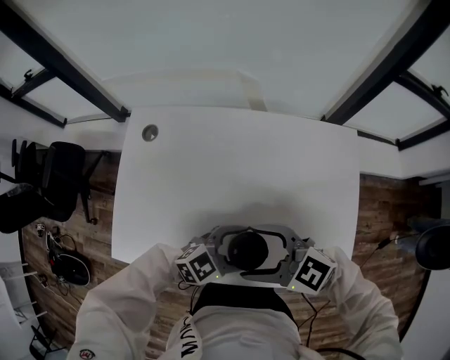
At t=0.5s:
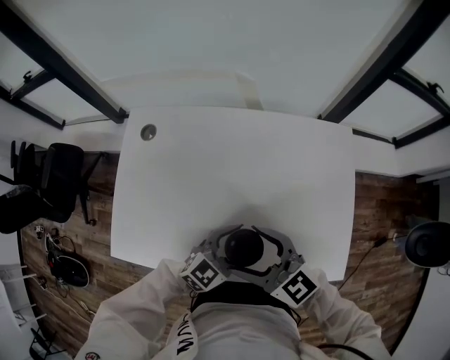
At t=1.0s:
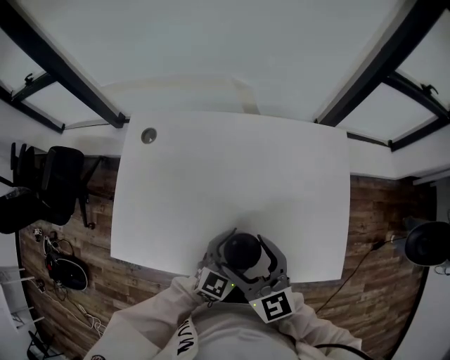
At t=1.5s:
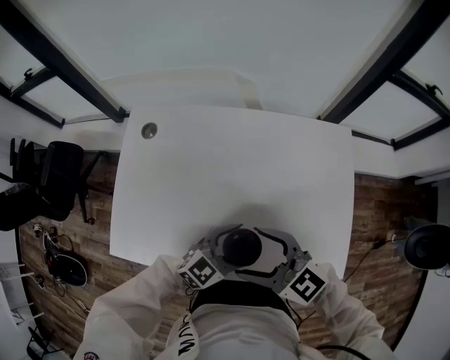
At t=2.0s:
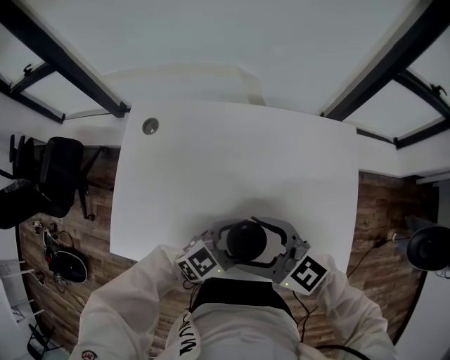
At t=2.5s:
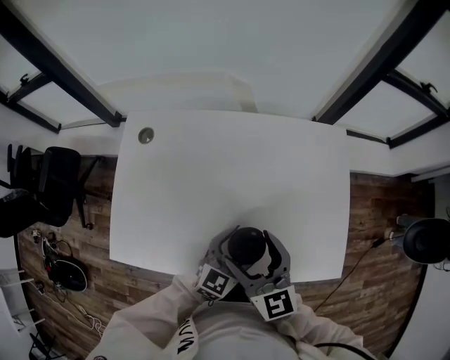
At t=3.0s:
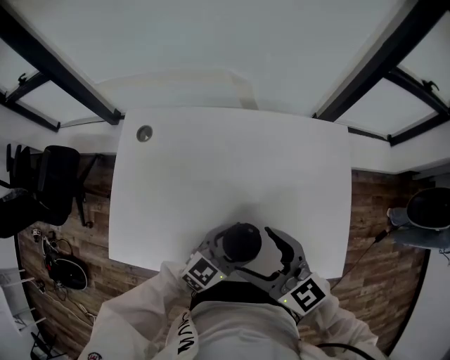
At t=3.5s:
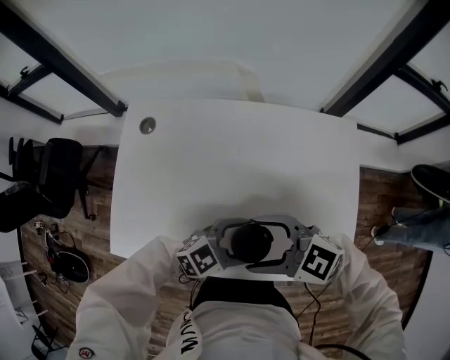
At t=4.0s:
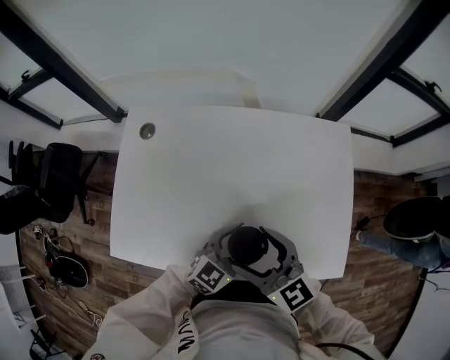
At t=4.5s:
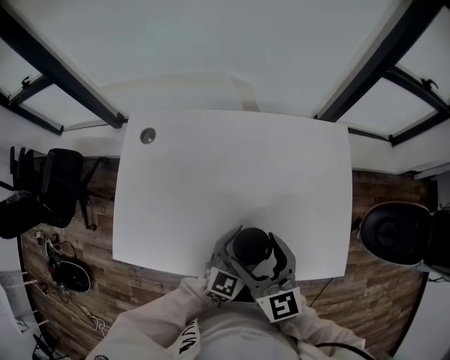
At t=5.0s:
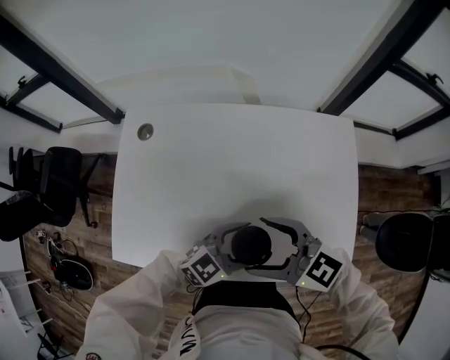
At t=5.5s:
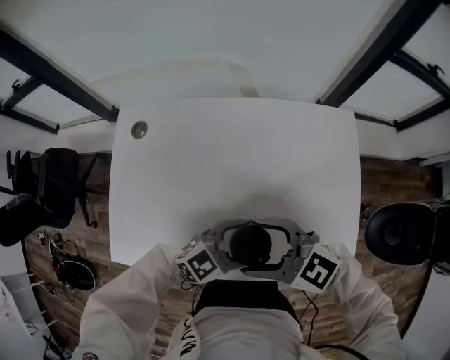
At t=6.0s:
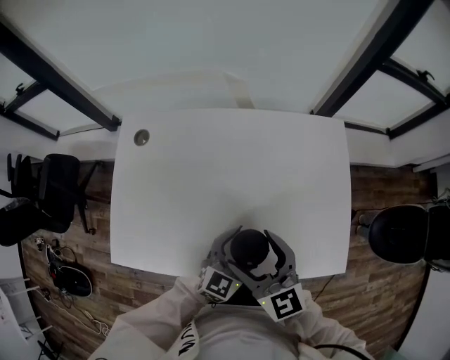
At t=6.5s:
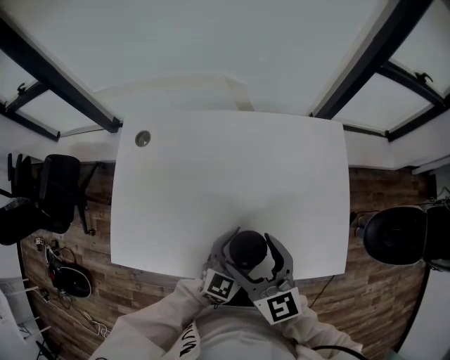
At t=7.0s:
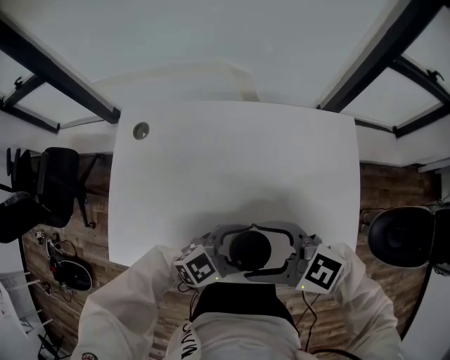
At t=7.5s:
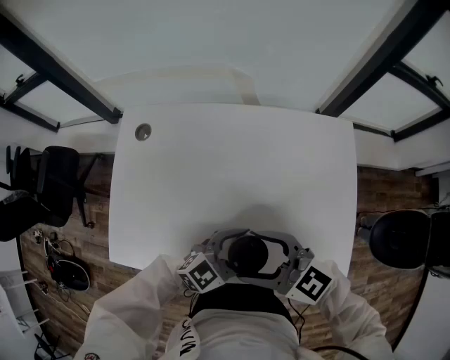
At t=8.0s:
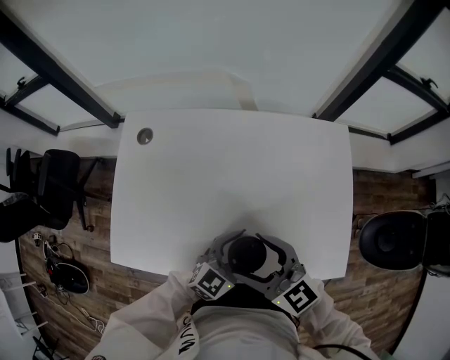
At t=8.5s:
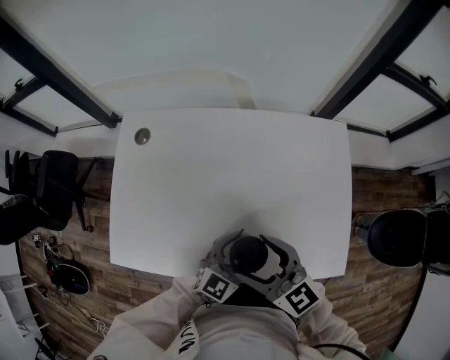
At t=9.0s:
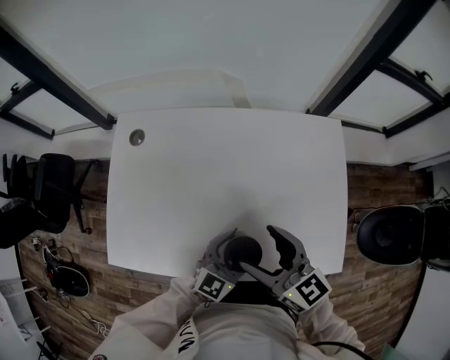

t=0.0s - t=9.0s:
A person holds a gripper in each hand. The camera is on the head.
t=2.0s - t=4.5s: The right gripper changes its angle by about 40 degrees. The left gripper rotates about 30 degrees.
t=4.5s - t=7.0s: The right gripper swivels some 50 degrees, while the left gripper changes its angle by roughly 40 degrees.
t=7.0s - t=9.0s: The left gripper changes its angle by about 30 degrees; the right gripper swivels approximately 40 degrees.

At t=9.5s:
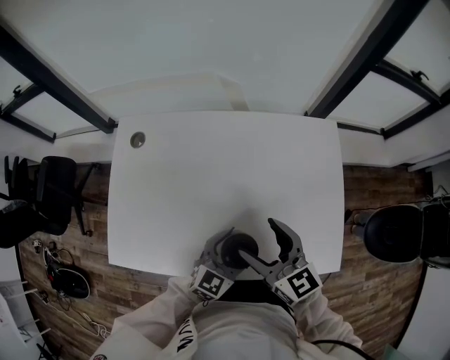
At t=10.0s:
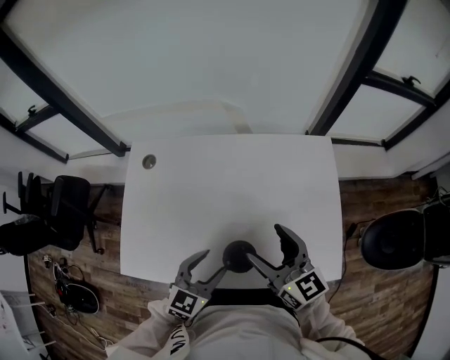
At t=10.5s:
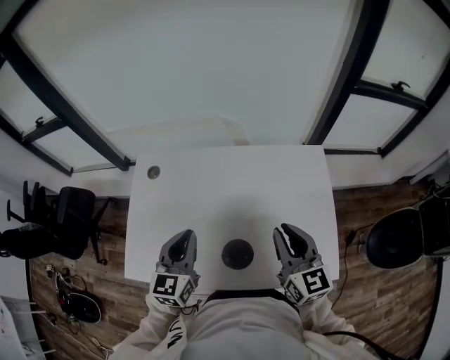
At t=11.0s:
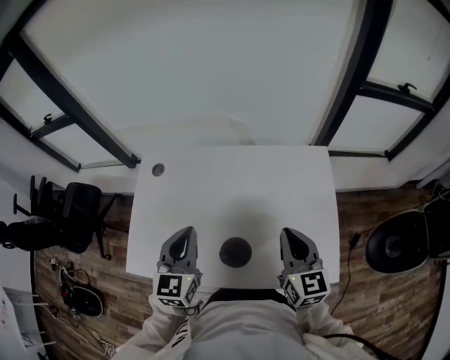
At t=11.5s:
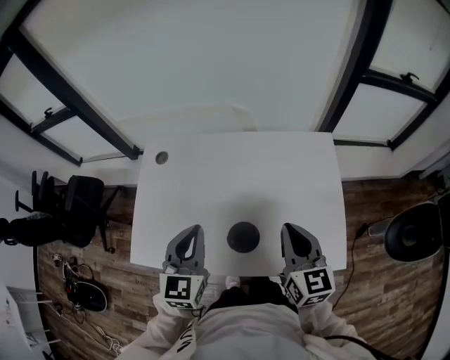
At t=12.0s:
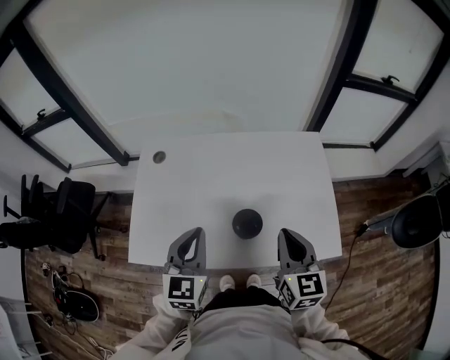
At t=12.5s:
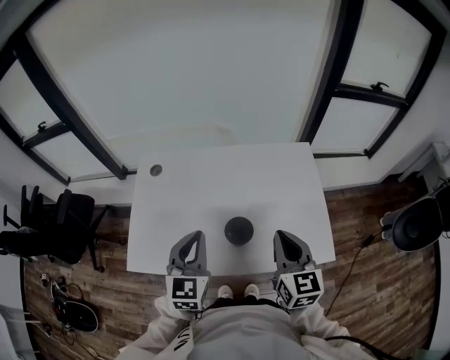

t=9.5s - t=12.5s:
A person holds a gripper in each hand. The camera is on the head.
t=9.5s - t=11.0s: The left gripper heads upward and to the left, covering roughly 25 cm, turns by roughly 40 degrees, and closes. Meanwhile the right gripper goes roughly 15 cm to the right and upward, changes its angle by about 20 degrees, and closes.
t=11.0s - t=12.5s: The two grippers go some 10 cm backward.

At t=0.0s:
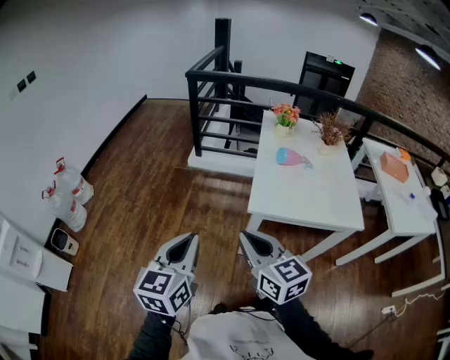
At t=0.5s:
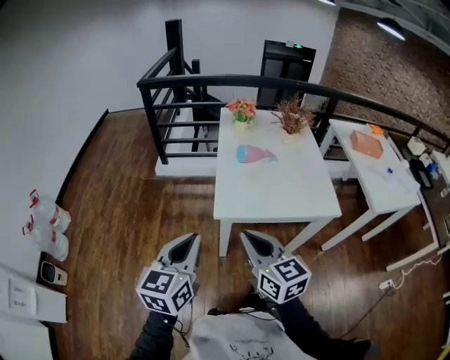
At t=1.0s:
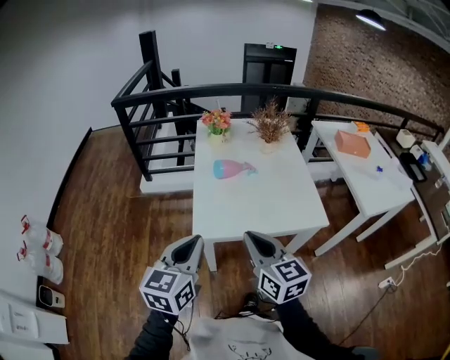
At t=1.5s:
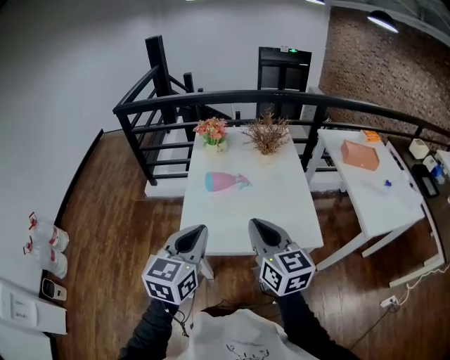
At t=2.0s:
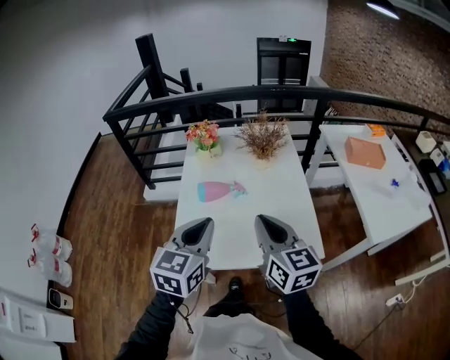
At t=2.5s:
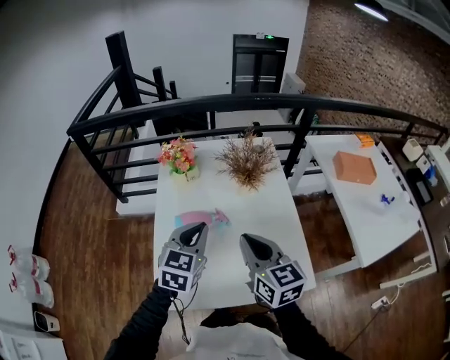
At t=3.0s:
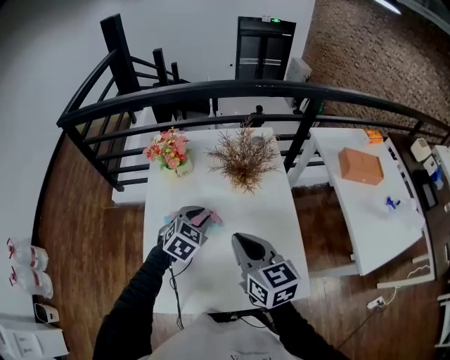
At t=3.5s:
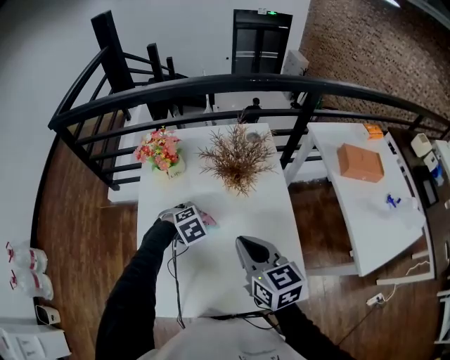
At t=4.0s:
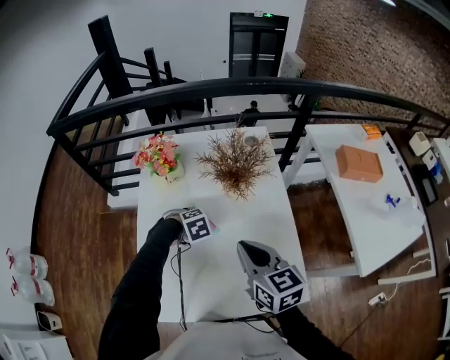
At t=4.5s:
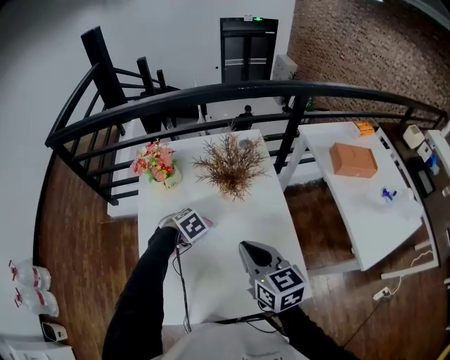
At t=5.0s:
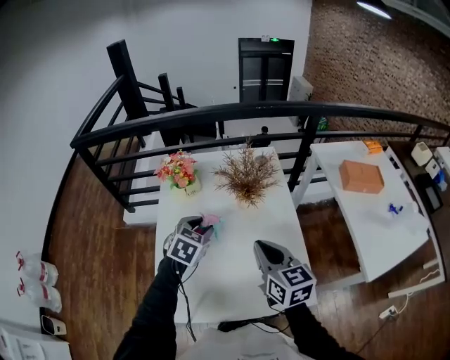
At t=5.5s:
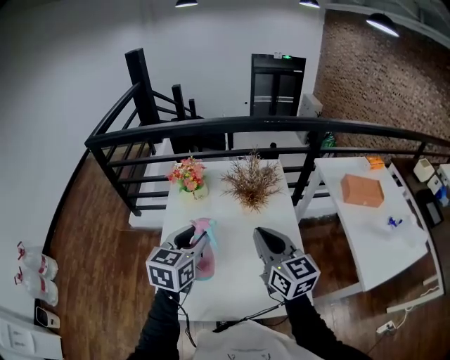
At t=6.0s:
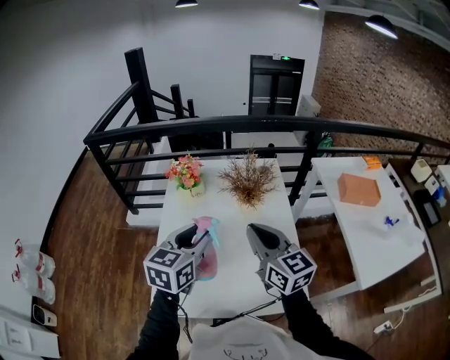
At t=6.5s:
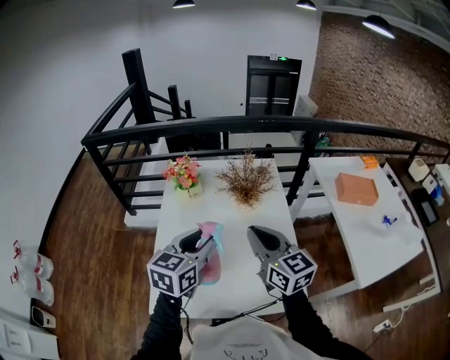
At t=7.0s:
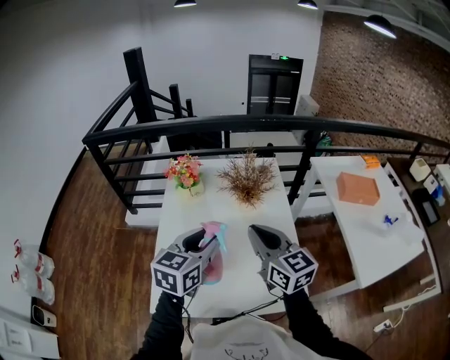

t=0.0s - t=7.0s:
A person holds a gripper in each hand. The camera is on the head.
t=0.0s - t=2.0s: The two grippers travel together, to the right and forward, roughly 60 cm. The right gripper turns by about 20 degrees.
t=2.0s - t=3.5s: The right gripper is displaced forward by roughly 30 cm, while the left gripper is displaced forward and downward by approximately 50 cm, tips its fingers downward by roughly 50 degrees, and opens.
t=3.5s - t=5.0s: The left gripper goes roughly 15 cm upward, and rotates about 40 degrees. Meanwhile the right gripper shifts by about 5 cm.
t=5.0s - t=7.0s: The left gripper shifts about 20 cm backward and upward, and turns by about 30 degrees; the right gripper is displaced upward by about 5 cm.

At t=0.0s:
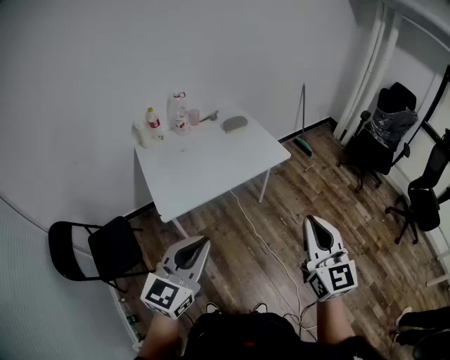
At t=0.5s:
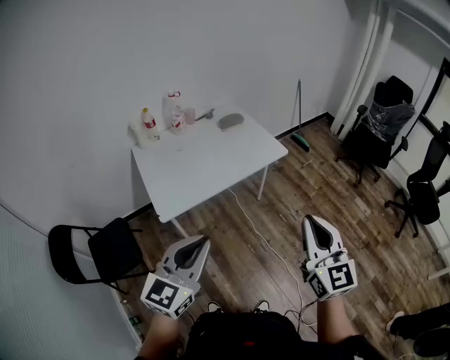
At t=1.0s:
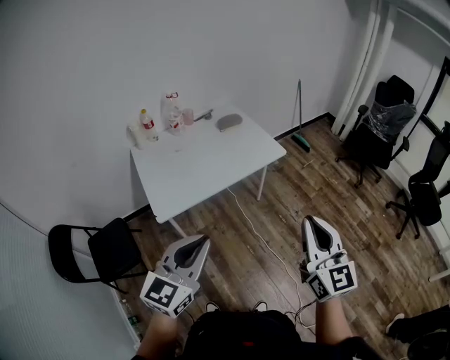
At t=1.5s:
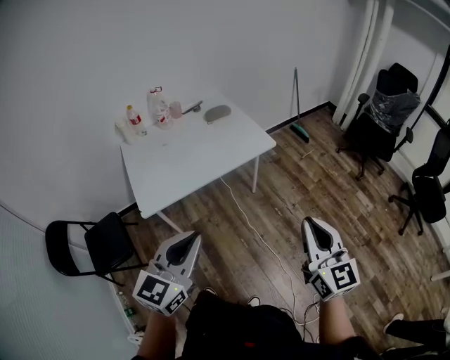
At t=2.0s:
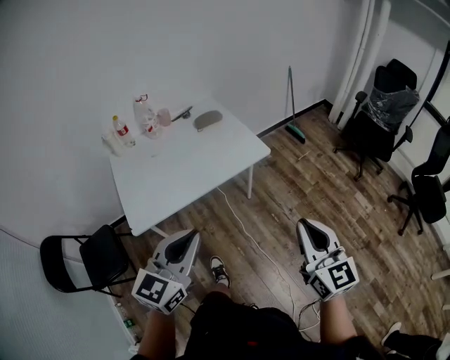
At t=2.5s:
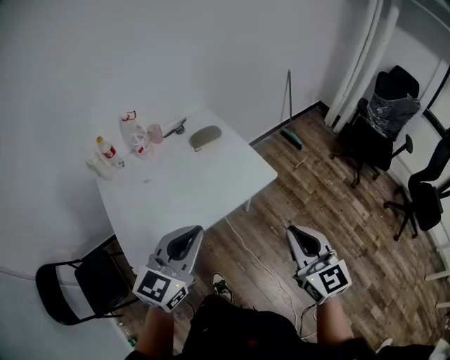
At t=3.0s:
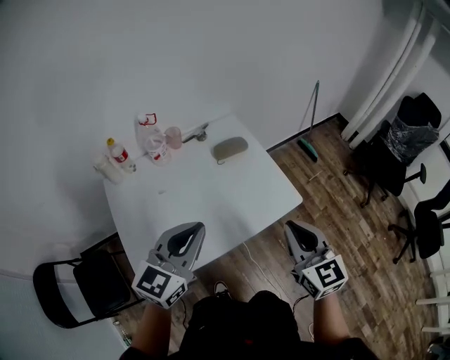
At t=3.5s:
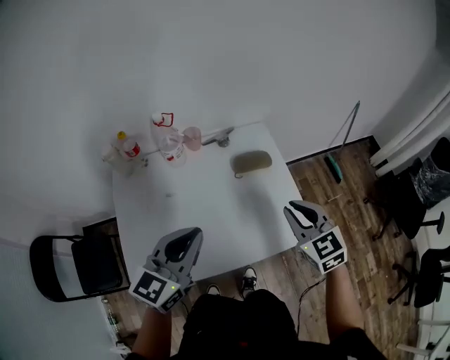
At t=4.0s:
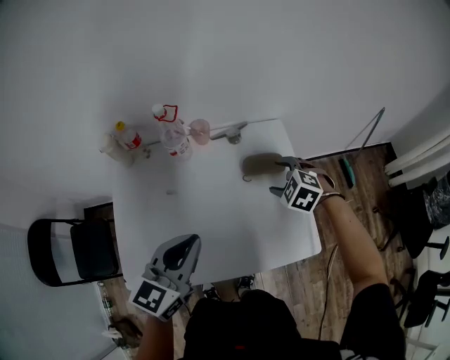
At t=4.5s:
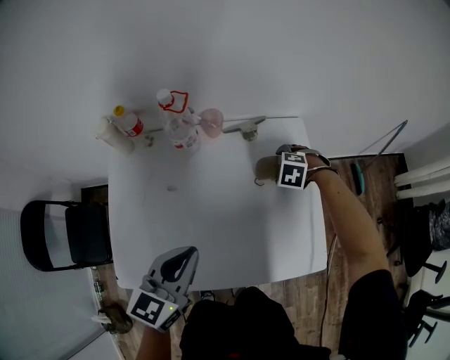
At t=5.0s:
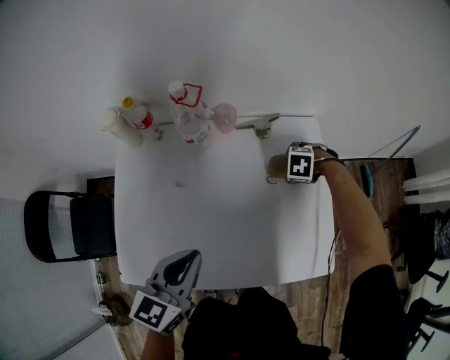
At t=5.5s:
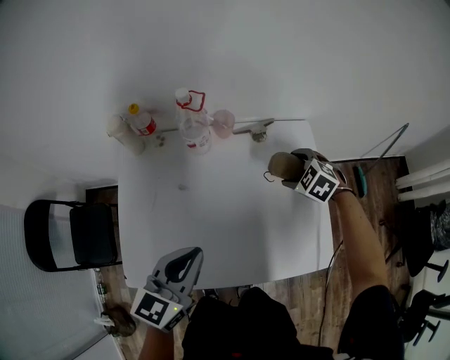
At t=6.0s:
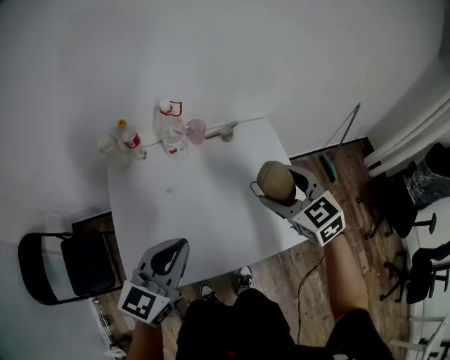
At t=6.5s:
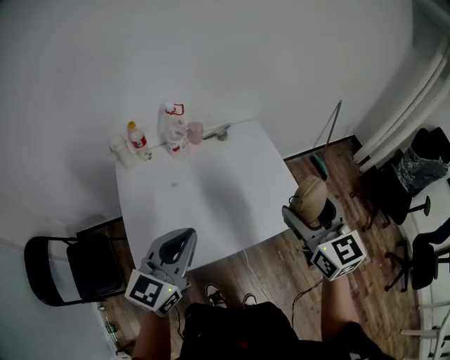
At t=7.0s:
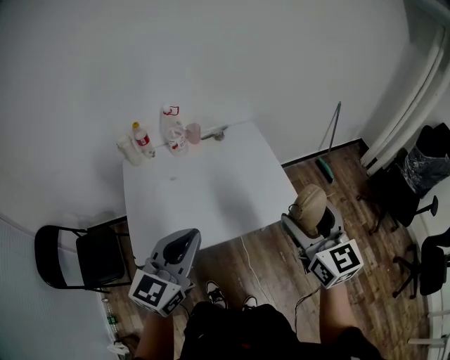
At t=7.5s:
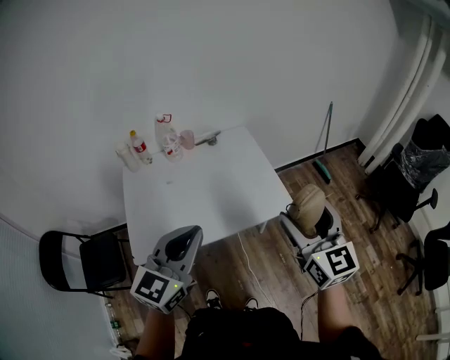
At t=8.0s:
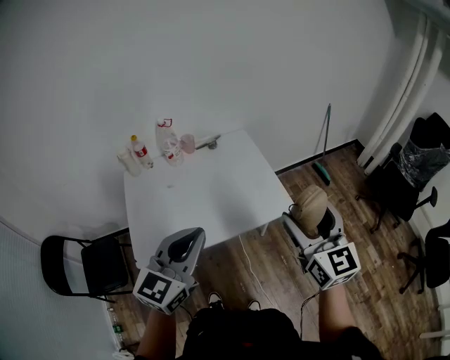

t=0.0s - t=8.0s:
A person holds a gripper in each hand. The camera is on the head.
t=0.0s - t=2.0s: The left gripper is displaced forward and to the right by approximately 20 cm. The right gripper travels to the right, forward and downward by about 20 cm.
t=2.0s - t=4.0s: The pair of grippers is taken roughly 60 cm. The right gripper tilts its fingers approximately 60 degrees downward, and opens. The left gripper rotates roughly 20 degrees.
t=4.0s - t=6.0s: The right gripper shifts roughly 15 cm upward, and tilts its fingers about 30 degrees upward. Meanwhile the left gripper moves approximately 5 cm downward and comes back.
t=6.0s - t=8.0s: Both grippers move backward, to the right and upward, approximately 35 cm. The right gripper tilts its fingers approximately 30 degrees upward.
